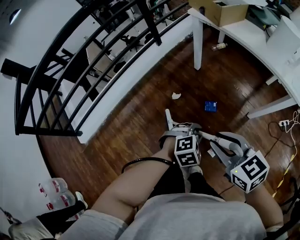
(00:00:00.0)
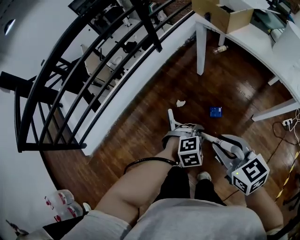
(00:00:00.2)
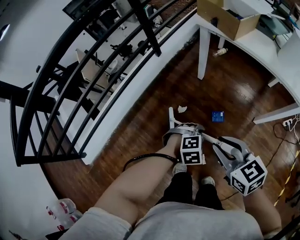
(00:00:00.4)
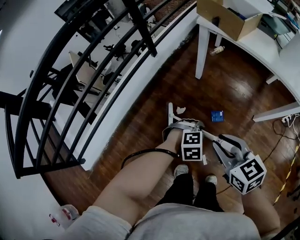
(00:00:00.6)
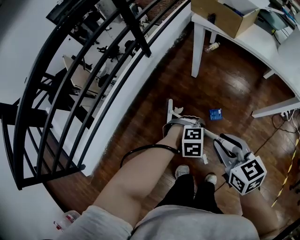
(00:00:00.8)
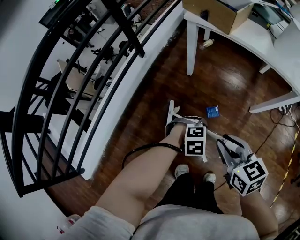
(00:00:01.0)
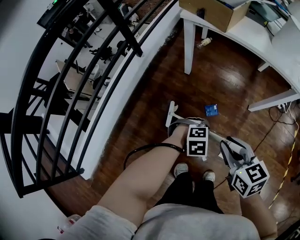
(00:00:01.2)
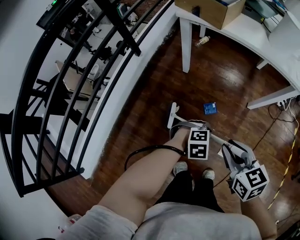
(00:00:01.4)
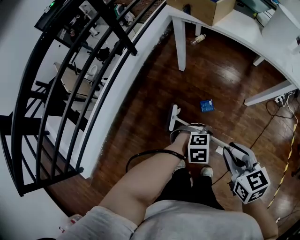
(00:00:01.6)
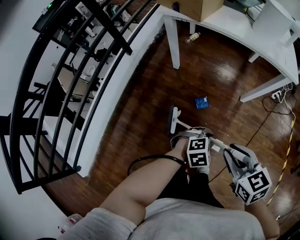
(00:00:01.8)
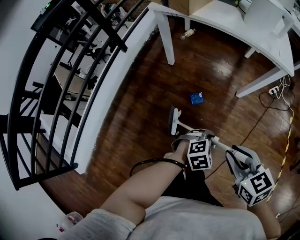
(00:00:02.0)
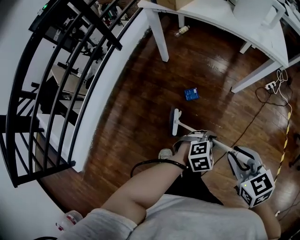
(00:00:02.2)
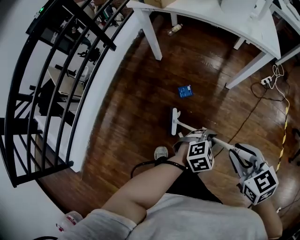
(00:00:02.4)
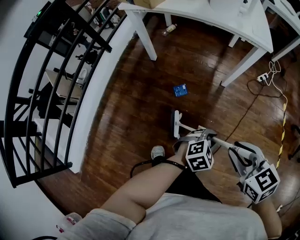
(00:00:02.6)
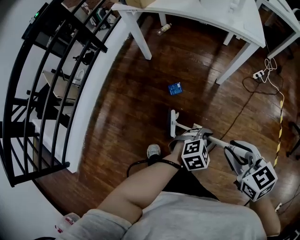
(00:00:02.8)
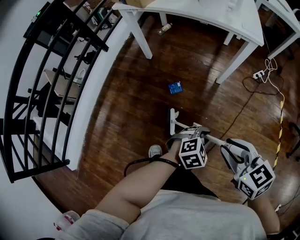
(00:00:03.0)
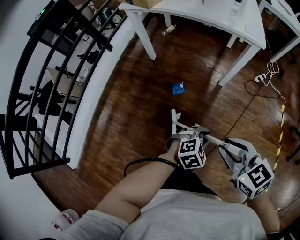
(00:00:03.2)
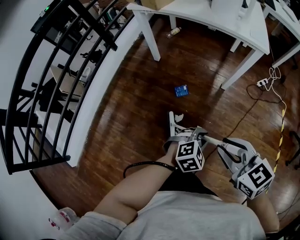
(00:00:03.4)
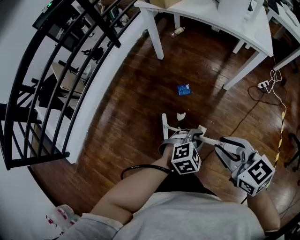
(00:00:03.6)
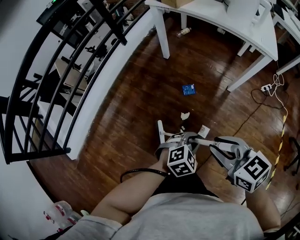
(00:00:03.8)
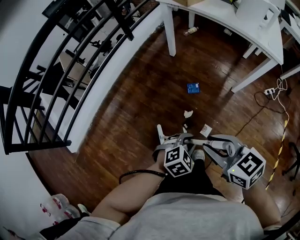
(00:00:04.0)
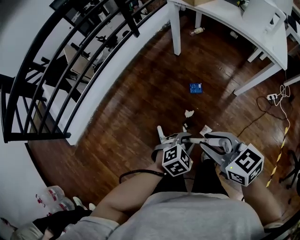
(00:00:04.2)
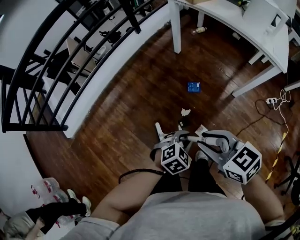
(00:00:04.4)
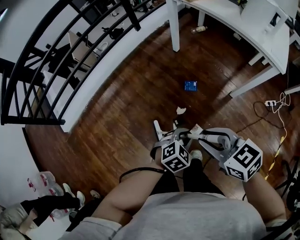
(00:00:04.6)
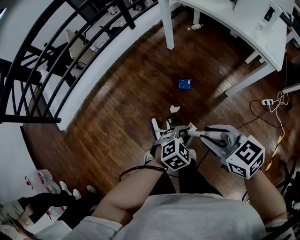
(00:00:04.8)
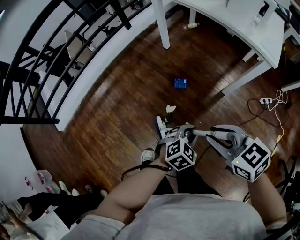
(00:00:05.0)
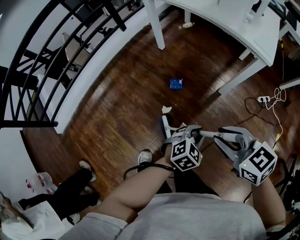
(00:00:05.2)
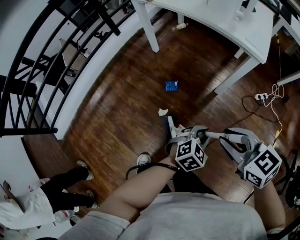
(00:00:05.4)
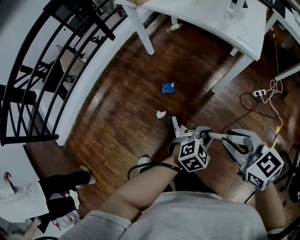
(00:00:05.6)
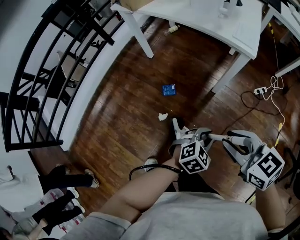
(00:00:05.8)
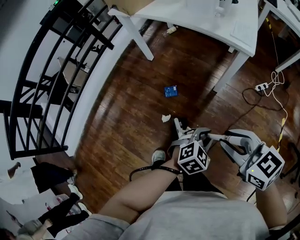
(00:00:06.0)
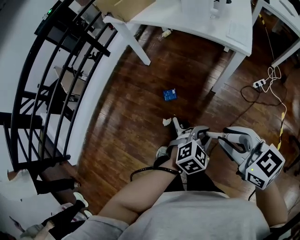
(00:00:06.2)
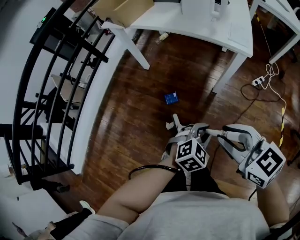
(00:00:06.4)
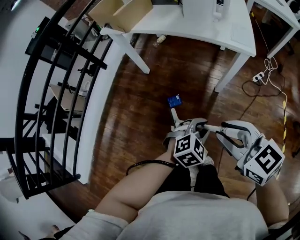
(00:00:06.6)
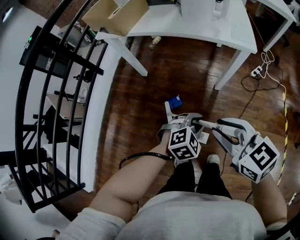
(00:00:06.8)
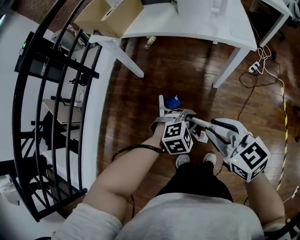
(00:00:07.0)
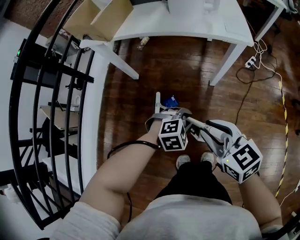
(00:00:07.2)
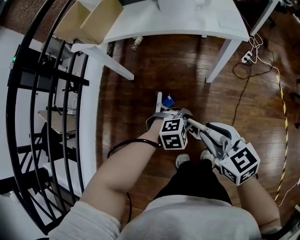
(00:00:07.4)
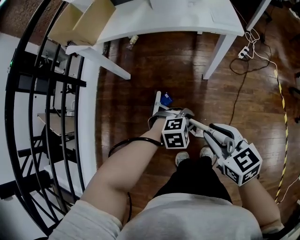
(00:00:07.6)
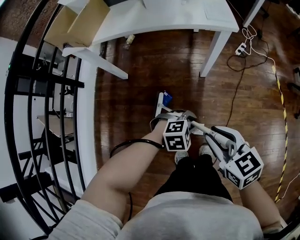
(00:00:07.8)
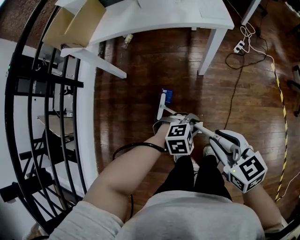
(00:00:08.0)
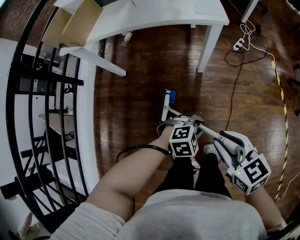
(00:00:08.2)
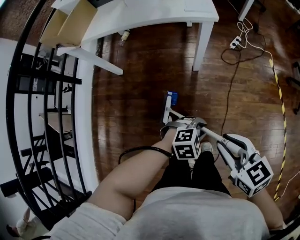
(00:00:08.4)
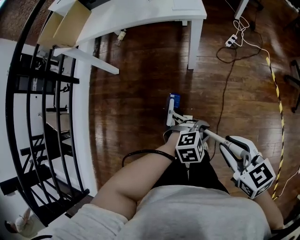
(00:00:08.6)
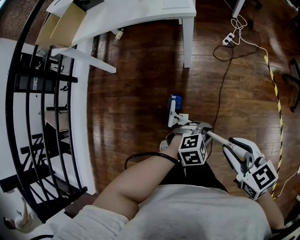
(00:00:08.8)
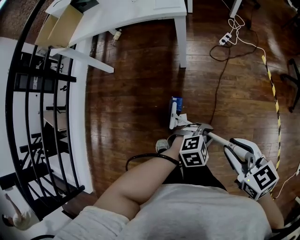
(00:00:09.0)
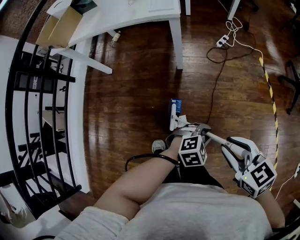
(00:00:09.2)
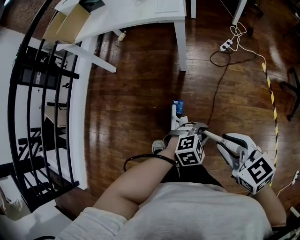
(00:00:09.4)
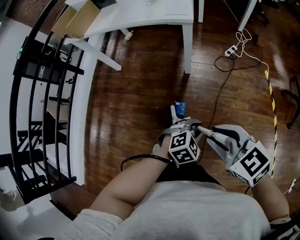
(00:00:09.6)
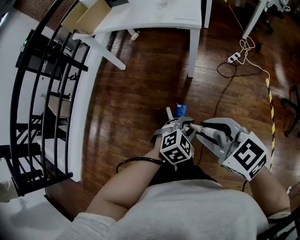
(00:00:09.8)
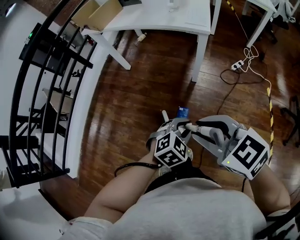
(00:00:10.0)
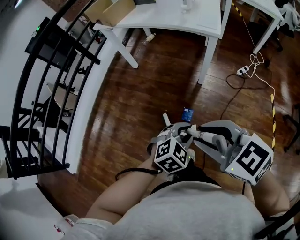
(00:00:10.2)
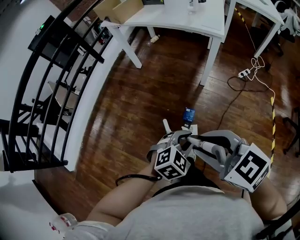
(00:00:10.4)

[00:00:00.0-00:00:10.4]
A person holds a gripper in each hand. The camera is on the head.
00:00:00.0 to 00:00:01.4: The right gripper shifts by approximately 15 cm, and swivels roughly 30 degrees; the left gripper changes its angle by about 30 degrees.
00:00:01.4 to 00:00:03.0: Both grippers move to the right, about 30 cm.
00:00:03.0 to 00:00:04.4: The left gripper shifts by approximately 15 cm, and turns by about 30 degrees. The right gripper ends up about 15 cm from where it was, and rotates about 30 degrees.
00:00:04.4 to 00:00:06.0: Both grippers move to the right, about 30 cm.
00:00:06.0 to 00:00:07.4: The right gripper changes place by roughly 20 cm, and turns by approximately 30 degrees; the left gripper shifts by about 20 cm, and changes its angle by roughly 50 degrees.
00:00:07.4 to 00:00:09.0: The right gripper shifts by approximately 35 cm. The left gripper moves roughly 35 cm.
00:00:09.0 to 00:00:10.4: The right gripper ends up about 20 cm from where it was, and changes its angle by some 40 degrees. Meanwhile the left gripper shifts by some 20 cm, and turns by roughly 40 degrees.

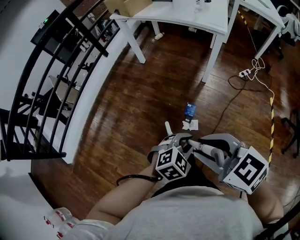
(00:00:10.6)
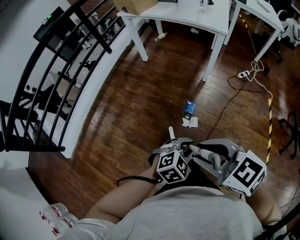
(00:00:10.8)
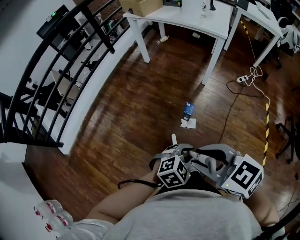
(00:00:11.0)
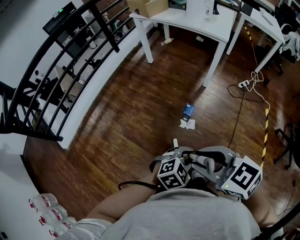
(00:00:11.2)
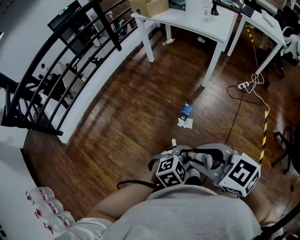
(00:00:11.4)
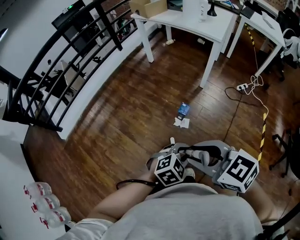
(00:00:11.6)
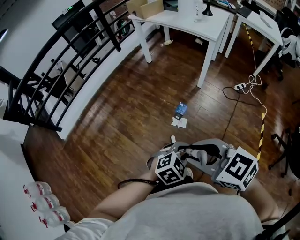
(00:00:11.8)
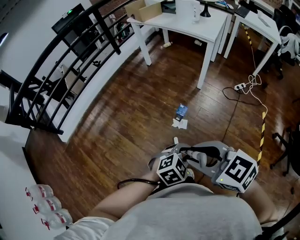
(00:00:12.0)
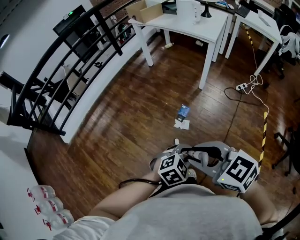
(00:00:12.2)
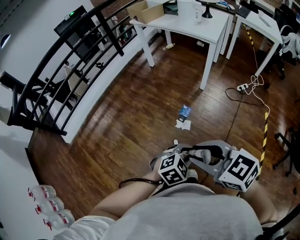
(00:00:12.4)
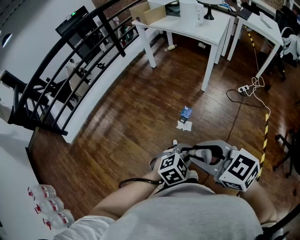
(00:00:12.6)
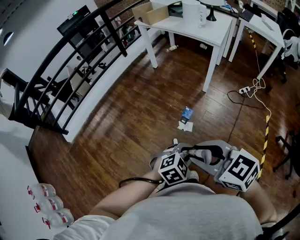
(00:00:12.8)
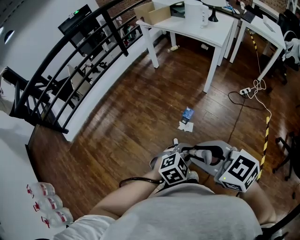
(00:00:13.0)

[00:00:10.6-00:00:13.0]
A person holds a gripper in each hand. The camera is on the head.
00:00:10.6 to 00:00:11.8: The left gripper moves approximately 20 cm. The right gripper changes place by approximately 20 cm.
00:00:11.8 to 00:00:13.0: There are only small adjustments of the grippers.

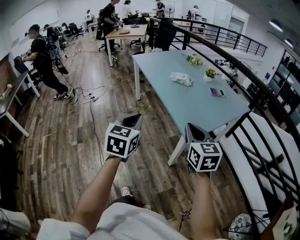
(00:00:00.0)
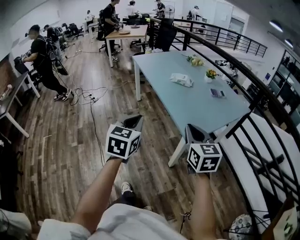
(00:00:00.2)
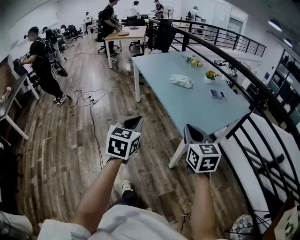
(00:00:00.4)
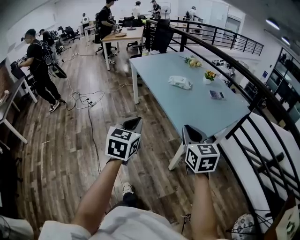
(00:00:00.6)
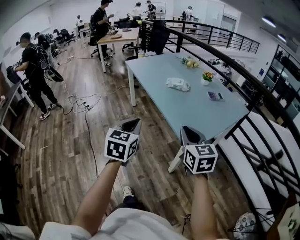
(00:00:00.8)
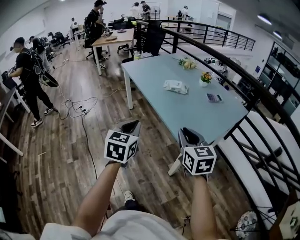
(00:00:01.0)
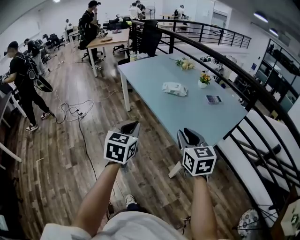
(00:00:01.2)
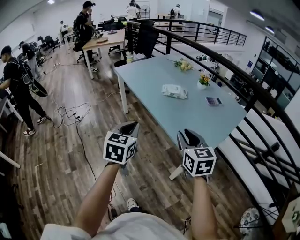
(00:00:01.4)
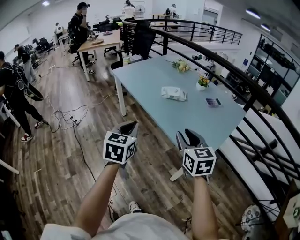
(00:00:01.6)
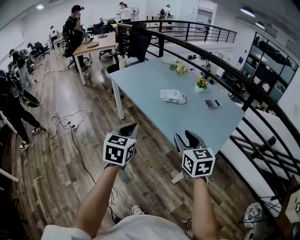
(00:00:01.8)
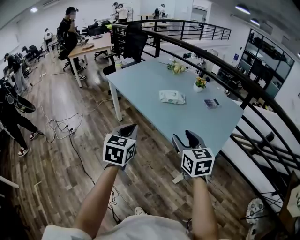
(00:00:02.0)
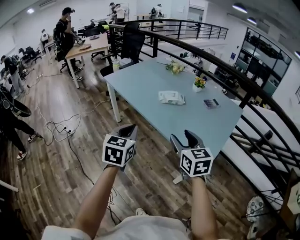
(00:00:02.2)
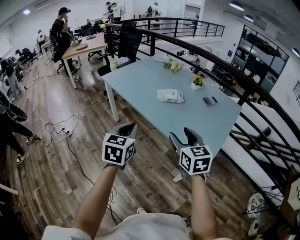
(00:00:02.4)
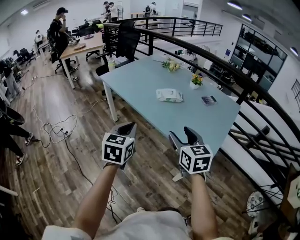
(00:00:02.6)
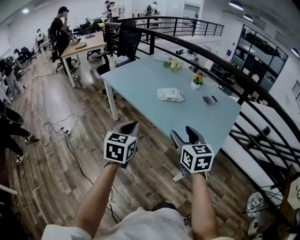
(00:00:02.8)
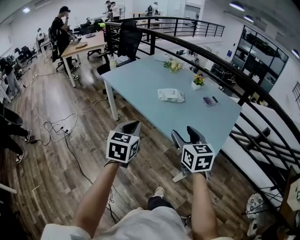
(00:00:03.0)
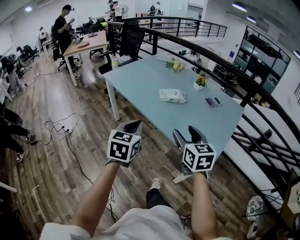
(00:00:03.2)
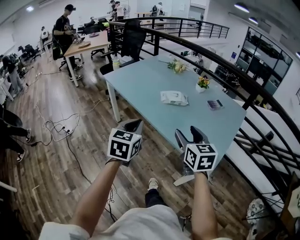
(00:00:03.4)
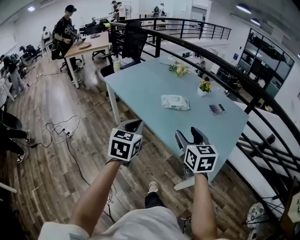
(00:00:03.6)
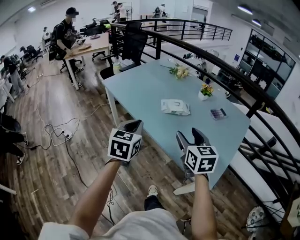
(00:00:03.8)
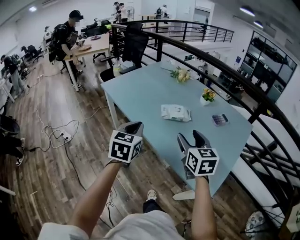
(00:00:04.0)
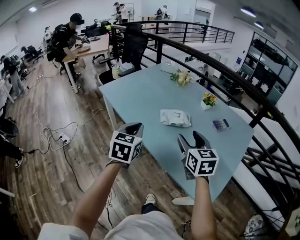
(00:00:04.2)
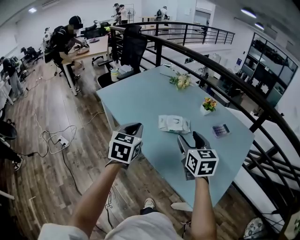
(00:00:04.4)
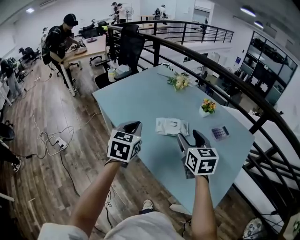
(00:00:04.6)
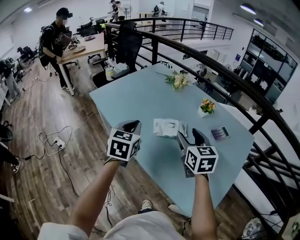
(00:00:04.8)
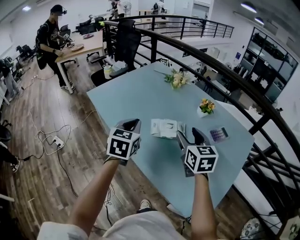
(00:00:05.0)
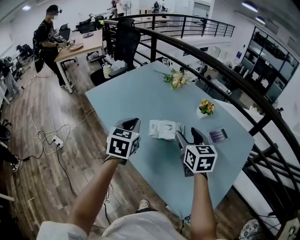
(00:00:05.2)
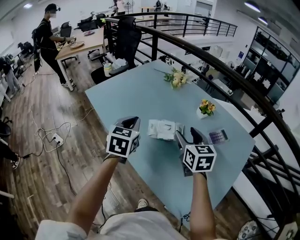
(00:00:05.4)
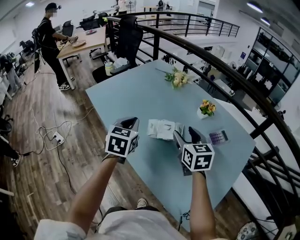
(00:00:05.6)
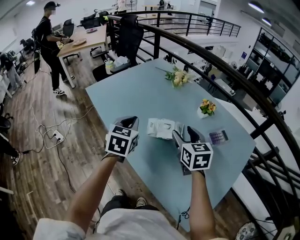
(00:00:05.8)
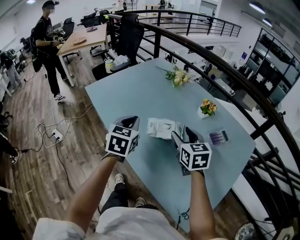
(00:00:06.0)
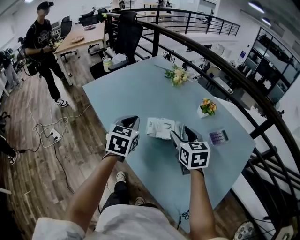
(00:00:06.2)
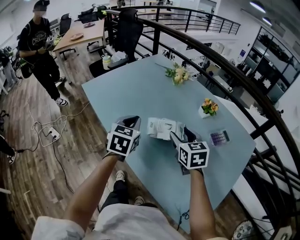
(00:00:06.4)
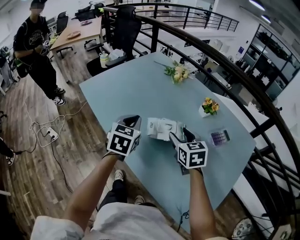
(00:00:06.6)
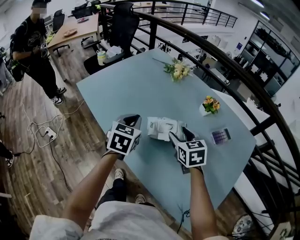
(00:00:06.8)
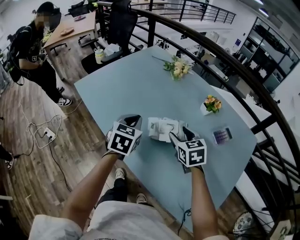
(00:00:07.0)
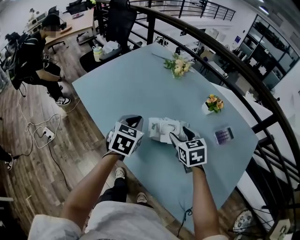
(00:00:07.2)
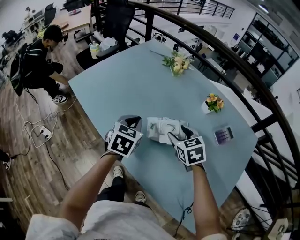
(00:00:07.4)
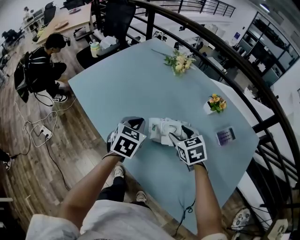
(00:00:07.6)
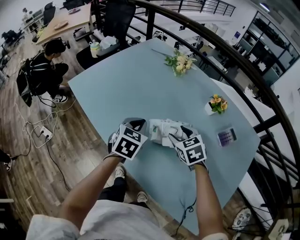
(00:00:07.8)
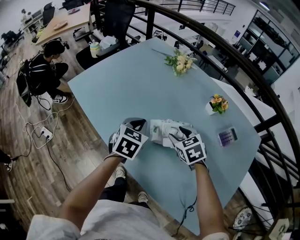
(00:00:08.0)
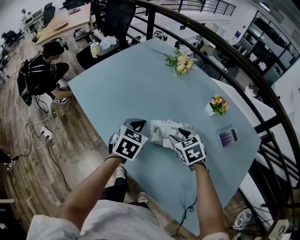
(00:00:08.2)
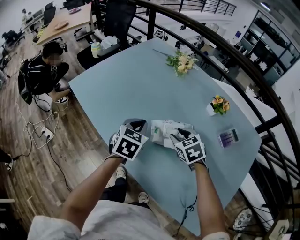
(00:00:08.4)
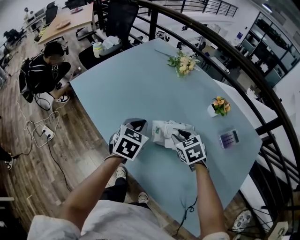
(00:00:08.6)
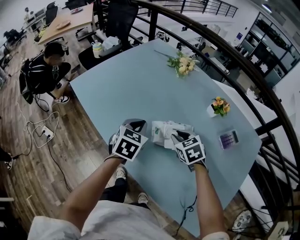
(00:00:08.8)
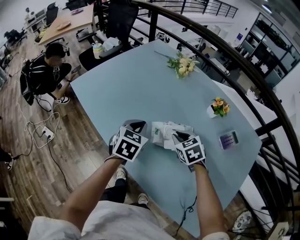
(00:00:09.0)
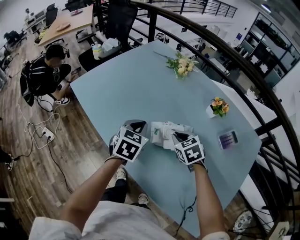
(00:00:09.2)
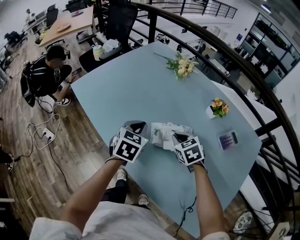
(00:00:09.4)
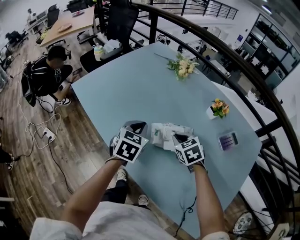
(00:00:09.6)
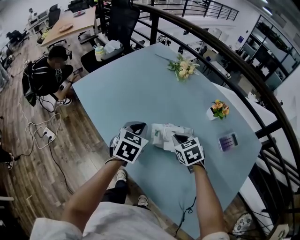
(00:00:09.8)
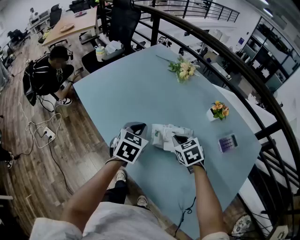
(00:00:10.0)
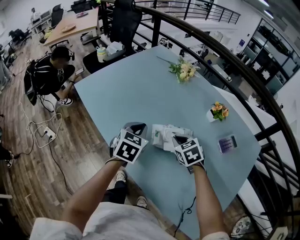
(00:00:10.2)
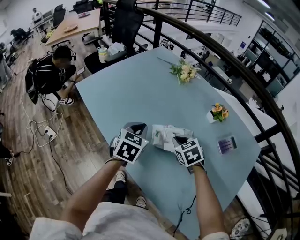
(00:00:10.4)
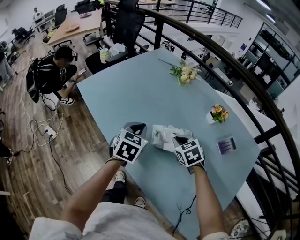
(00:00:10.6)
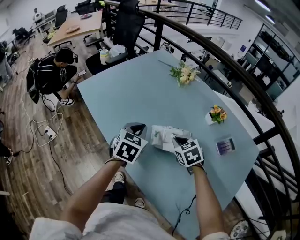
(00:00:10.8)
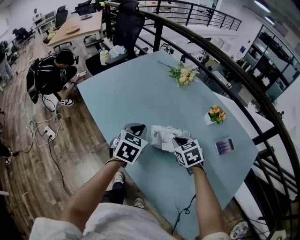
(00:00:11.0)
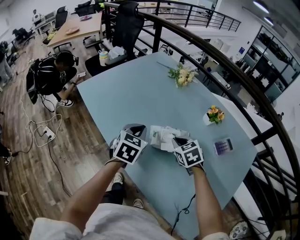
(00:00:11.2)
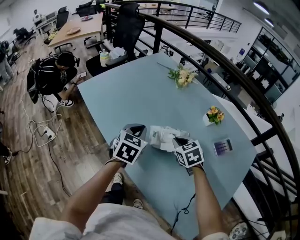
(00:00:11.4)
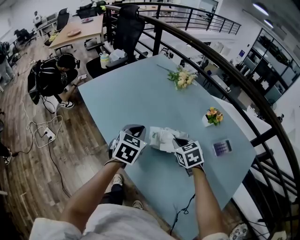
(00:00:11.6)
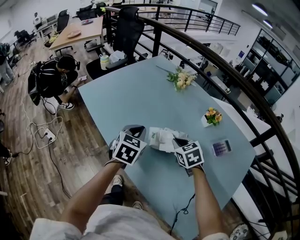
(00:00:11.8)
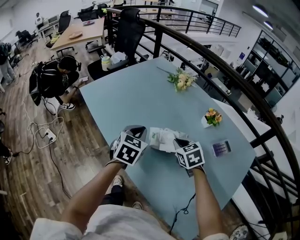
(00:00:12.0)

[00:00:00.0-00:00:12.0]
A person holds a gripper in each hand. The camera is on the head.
00:00:00.0 to 00:00:01.6: The right gripper shifts roughly 20 cm forward and to the left, and opens; the left gripper shifts roughly 20 cm forward.
00:00:01.6 to 00:00:03.0: The left gripper moves forward, roughly 5 cm; the right gripper changes place by about 5 cm, and opens its fingers.
00:00:03.0 to 00:00:04.4: Both grippers travel together forward, approximately 25 cm.
00:00:04.4 to 00:00:06.0: The left gripper goes roughly 10 cm forward, while the right gripper travels forward and downward by approximately 15 cm.
00:00:06.0 to 00:00:07.6: Both grippers move downward and forward, about 15 cm. The right gripper rotates roughly 20 degrees.
00:00:07.6 to 00:00:09.0: The right gripper closes its fingers.
00:00:09.0 to 00:00:12.0: The grippers make only small movements.
